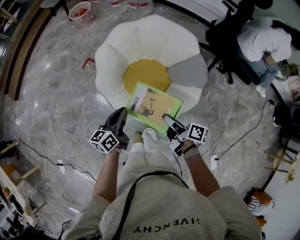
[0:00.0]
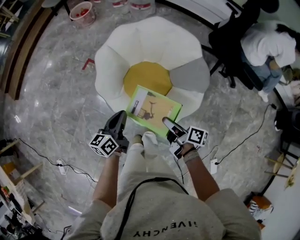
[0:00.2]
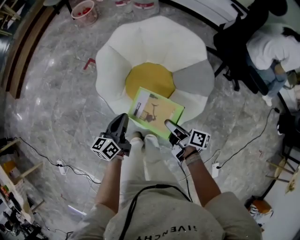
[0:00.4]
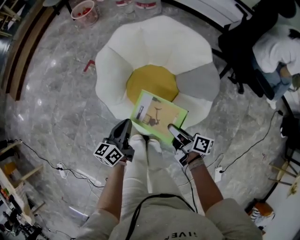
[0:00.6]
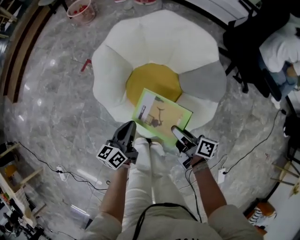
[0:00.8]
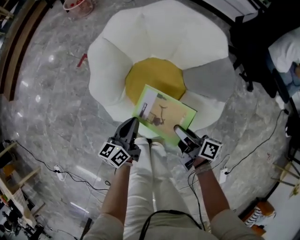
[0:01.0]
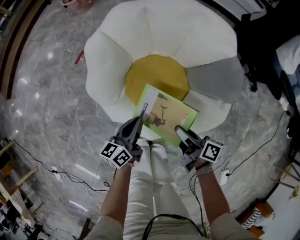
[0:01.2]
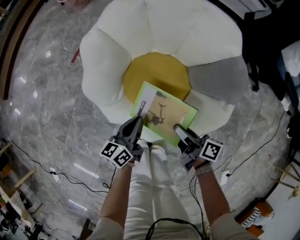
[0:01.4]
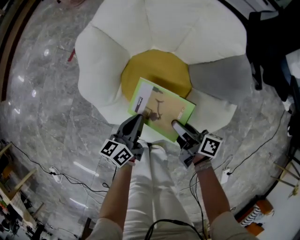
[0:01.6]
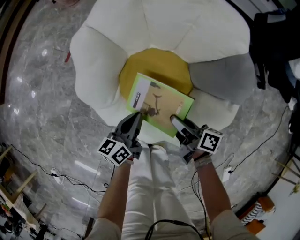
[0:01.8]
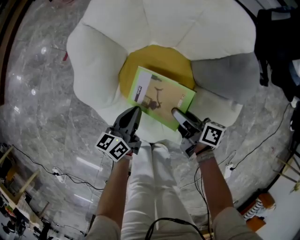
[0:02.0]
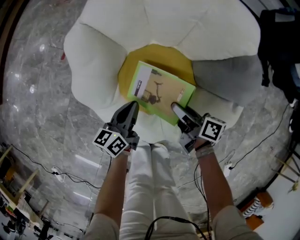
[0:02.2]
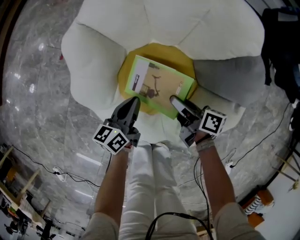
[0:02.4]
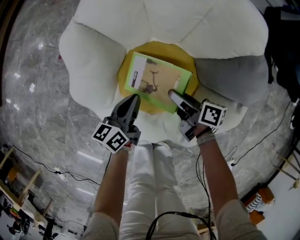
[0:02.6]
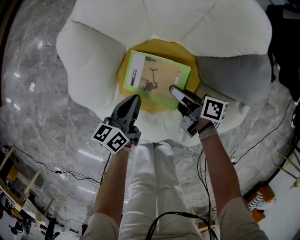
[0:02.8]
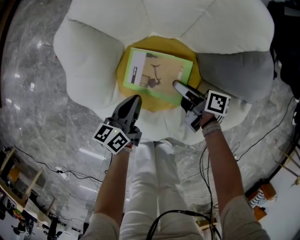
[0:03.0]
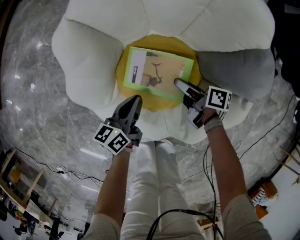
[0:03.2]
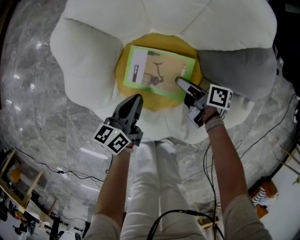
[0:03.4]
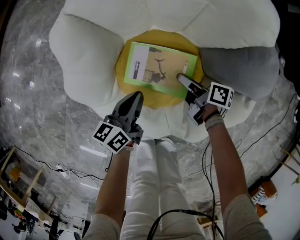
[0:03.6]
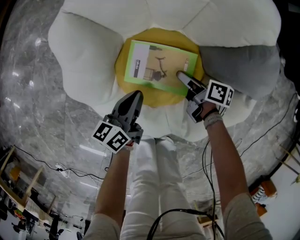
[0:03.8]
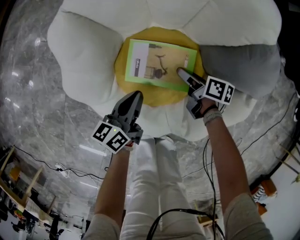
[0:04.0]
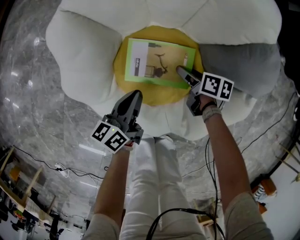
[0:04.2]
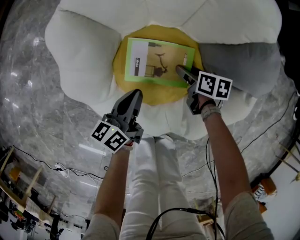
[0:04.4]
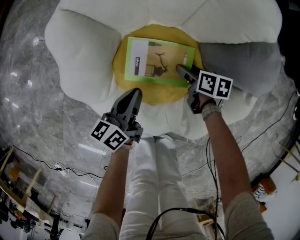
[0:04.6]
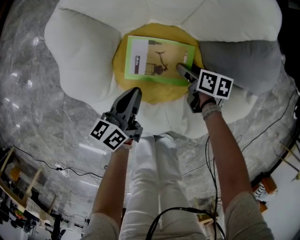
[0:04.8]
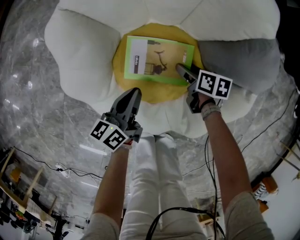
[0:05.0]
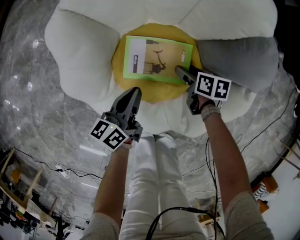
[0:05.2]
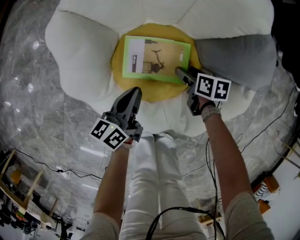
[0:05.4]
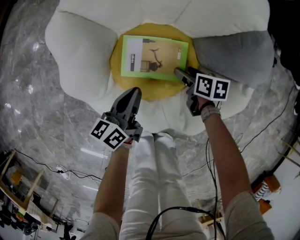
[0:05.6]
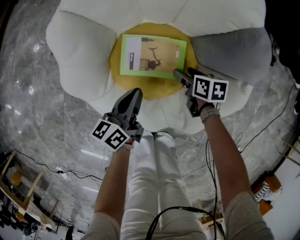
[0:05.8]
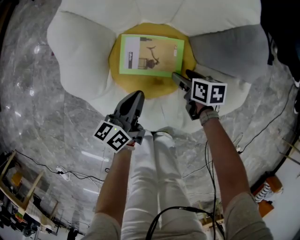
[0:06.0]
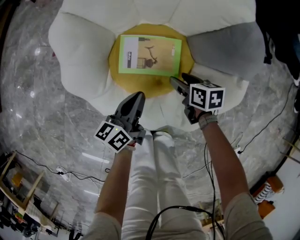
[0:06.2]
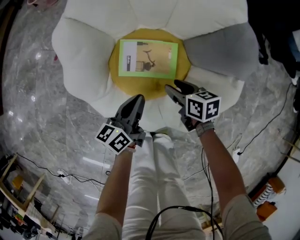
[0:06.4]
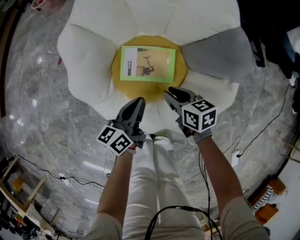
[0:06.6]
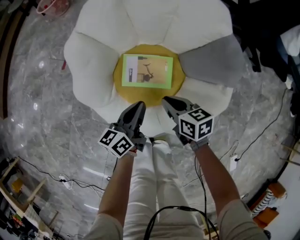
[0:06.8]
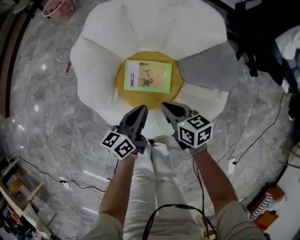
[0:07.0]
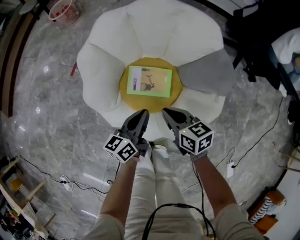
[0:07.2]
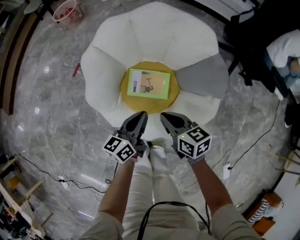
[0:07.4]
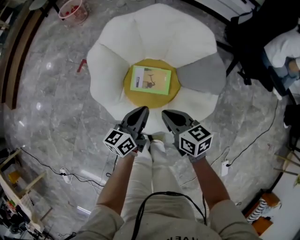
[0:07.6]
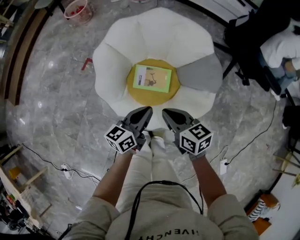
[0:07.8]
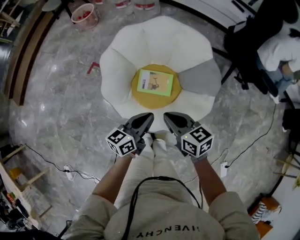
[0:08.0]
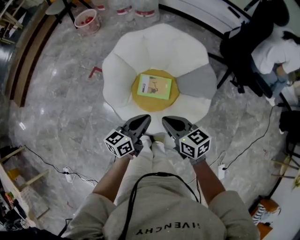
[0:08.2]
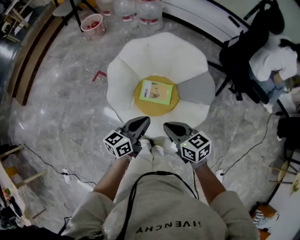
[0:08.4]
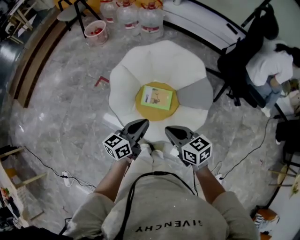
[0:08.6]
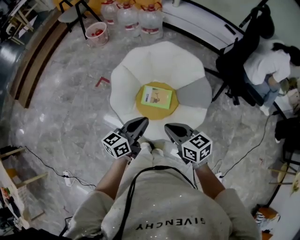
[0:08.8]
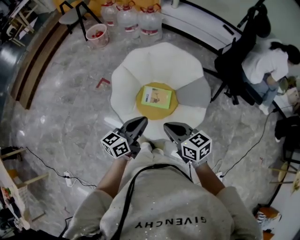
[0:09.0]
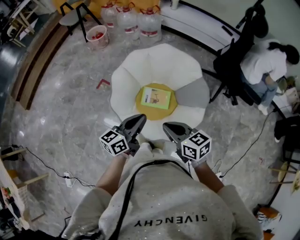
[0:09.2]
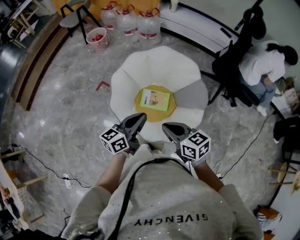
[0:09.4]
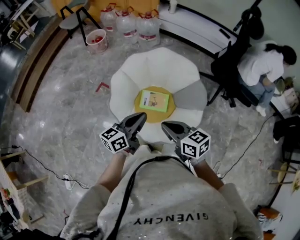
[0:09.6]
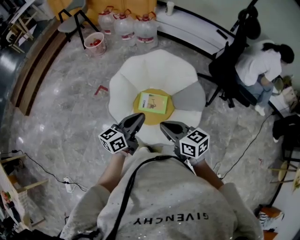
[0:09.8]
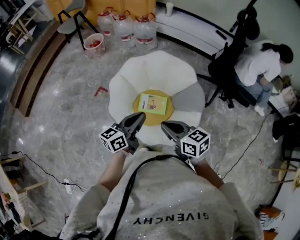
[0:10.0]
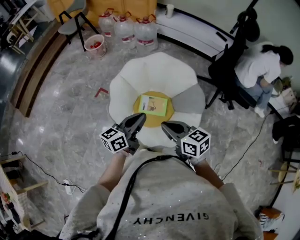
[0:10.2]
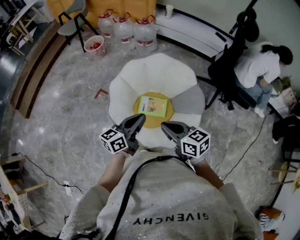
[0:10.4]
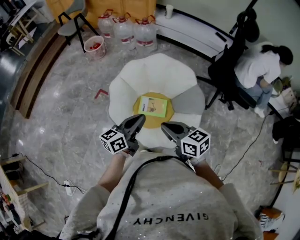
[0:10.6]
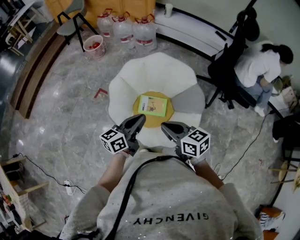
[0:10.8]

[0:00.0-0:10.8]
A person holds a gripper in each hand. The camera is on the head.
0:00.0 to 0:01.6: The left gripper heads downward, covering approximately 25 cm.
0:01.6 to 0:03.0: The left gripper ends up approximately 10 cm from where it was.
0:04.6 to 0:06.2: The left gripper shifts by roughly 5 cm.
0:06.2 to 0:07.8: The left gripper is displaced upward by some 25 cm.
0:07.8 to 0:09.2: The left gripper goes some 20 cm upward.

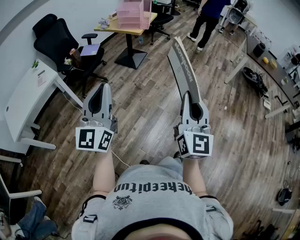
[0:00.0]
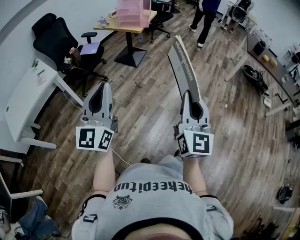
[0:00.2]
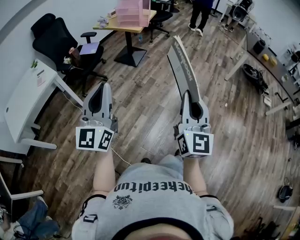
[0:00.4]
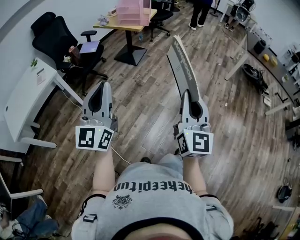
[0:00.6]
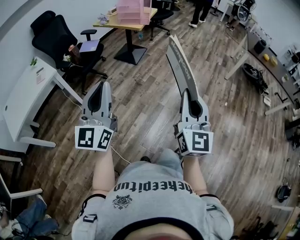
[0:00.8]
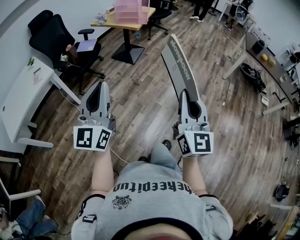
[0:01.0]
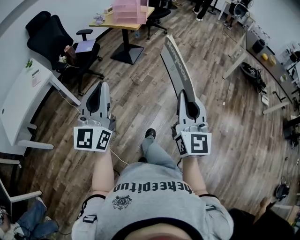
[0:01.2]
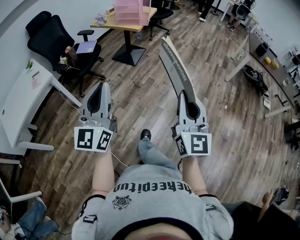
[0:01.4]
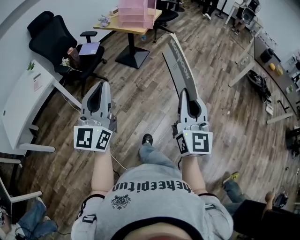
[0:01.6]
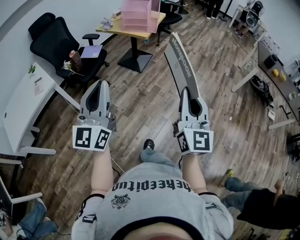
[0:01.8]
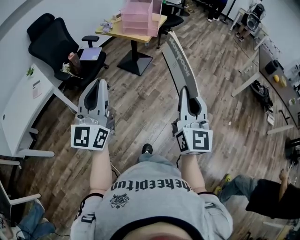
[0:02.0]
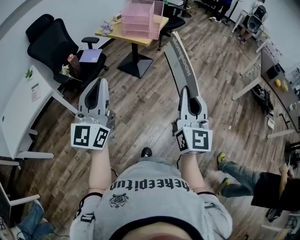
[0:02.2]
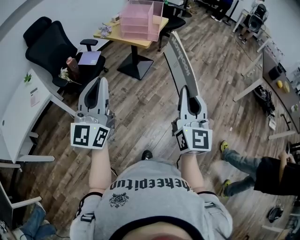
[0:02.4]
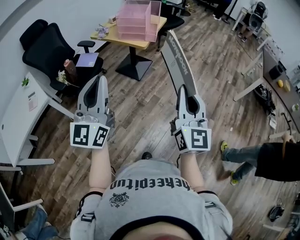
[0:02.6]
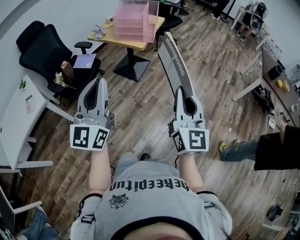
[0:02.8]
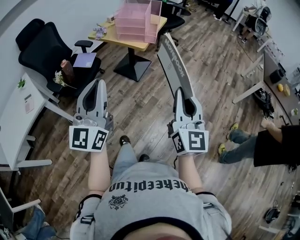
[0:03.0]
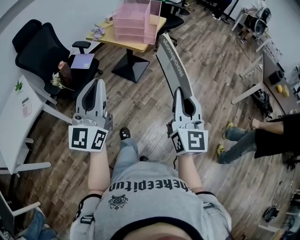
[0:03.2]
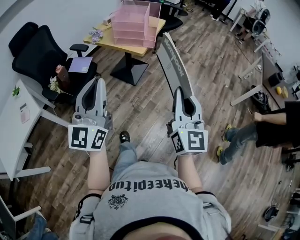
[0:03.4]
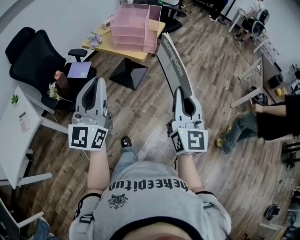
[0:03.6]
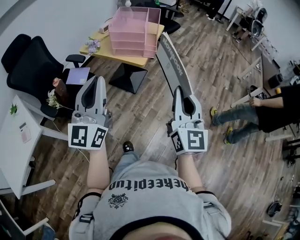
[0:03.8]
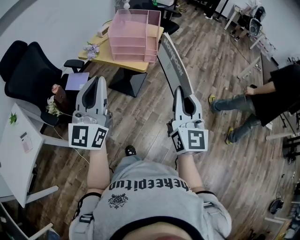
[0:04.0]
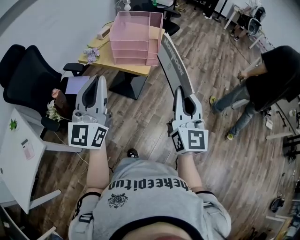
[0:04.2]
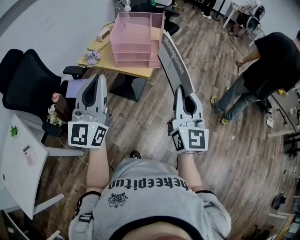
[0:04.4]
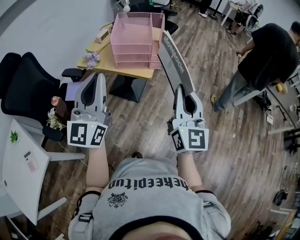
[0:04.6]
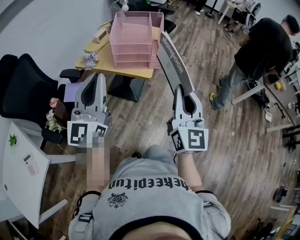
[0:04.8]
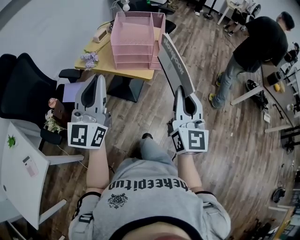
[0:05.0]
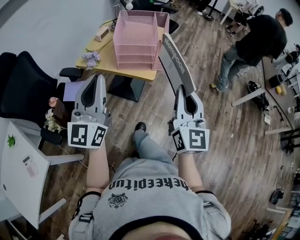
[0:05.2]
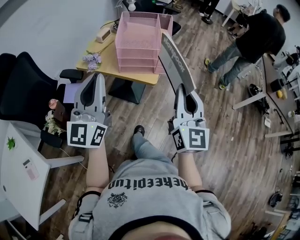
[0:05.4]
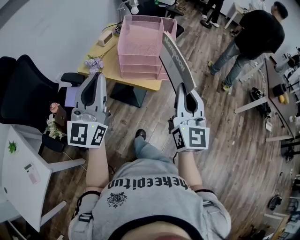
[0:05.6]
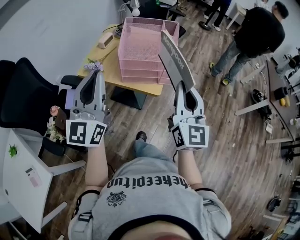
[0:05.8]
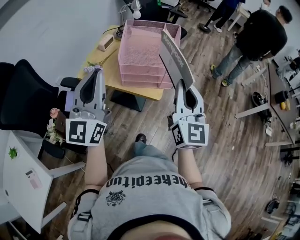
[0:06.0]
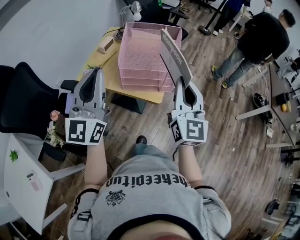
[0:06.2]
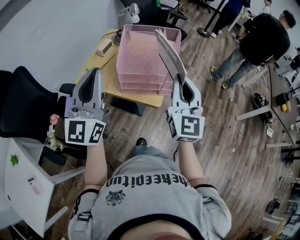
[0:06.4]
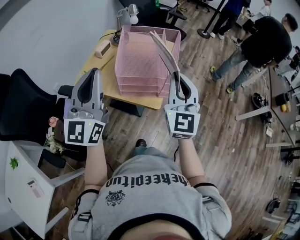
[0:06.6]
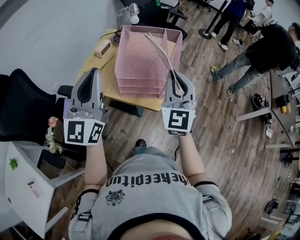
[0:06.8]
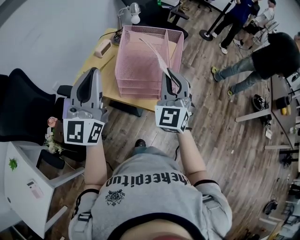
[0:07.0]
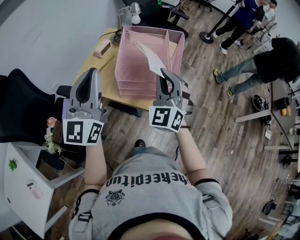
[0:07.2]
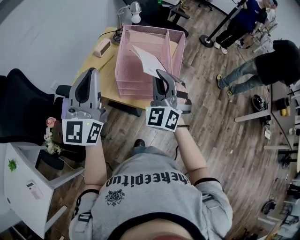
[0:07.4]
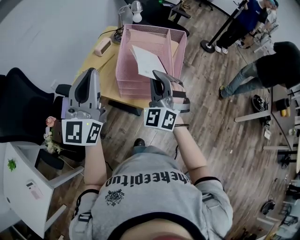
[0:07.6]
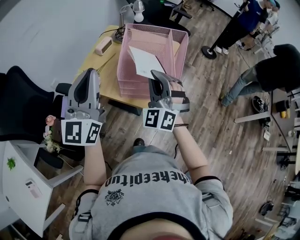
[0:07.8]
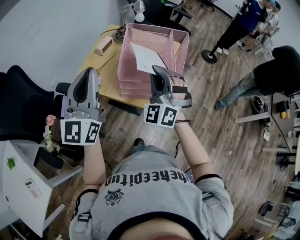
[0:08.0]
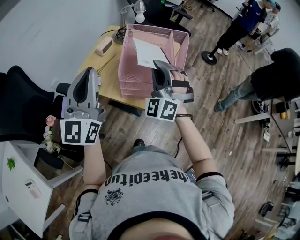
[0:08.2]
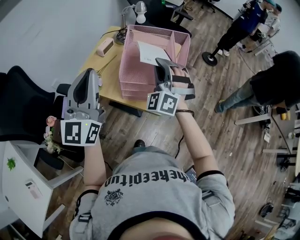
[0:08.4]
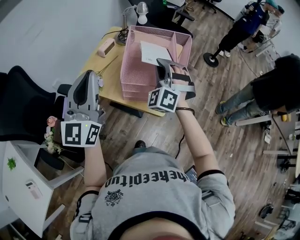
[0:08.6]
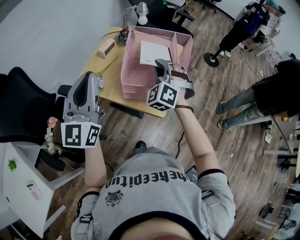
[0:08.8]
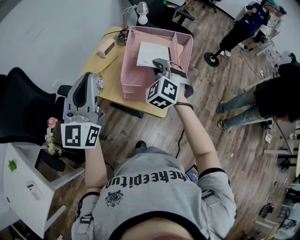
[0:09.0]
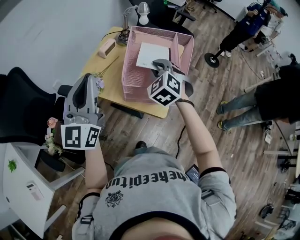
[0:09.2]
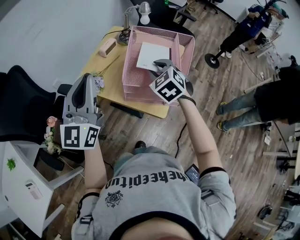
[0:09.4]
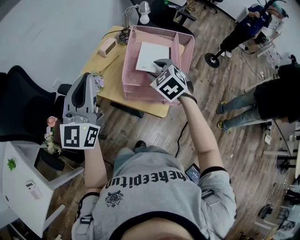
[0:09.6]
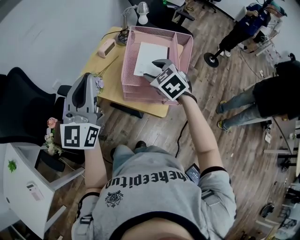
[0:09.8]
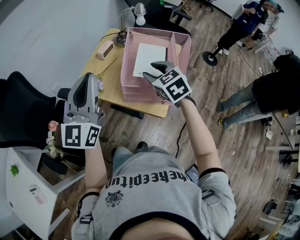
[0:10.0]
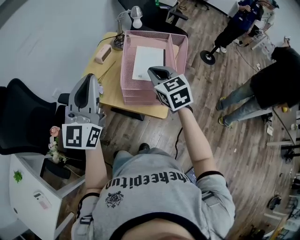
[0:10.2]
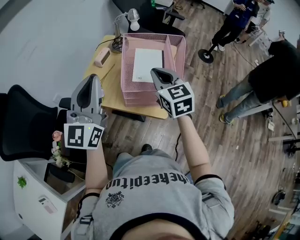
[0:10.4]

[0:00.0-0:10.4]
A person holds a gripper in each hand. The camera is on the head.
0:00.0 to 0:01.4: The two grippers go about 5 cm forward.
0:01.4 to 0:03.0: The two grippers go about 35 cm forward.
0:03.0 to 0:04.4: Both grippers travel together forward and to the left, some 35 cm.
0:04.4 to 0:06.0: Both grippers travel together forward and to the left, roughly 25 cm.
0:06.0 to 0:07.4: The right gripper heads forward, to the left and downward, covering approximately 20 cm, and rotates around the line of its fingers by approximately 50 degrees, counterclockwise from behind; the left gripper moves forward, about 10 cm.
0:07.4 to 0:09.0: The right gripper goes some 10 cm forward and downward, and turns by roughly 20 degrees.
0:09.0 to 0:10.4: The right gripper heads upward, covering roughly 5 cm, rotates around the line of its fingers by roughly 50 degrees, clockwise from behind, and opens and closes again.

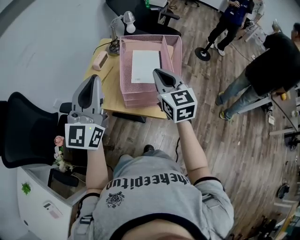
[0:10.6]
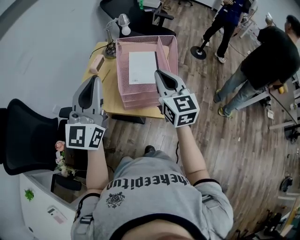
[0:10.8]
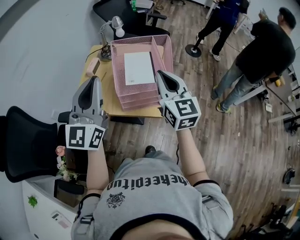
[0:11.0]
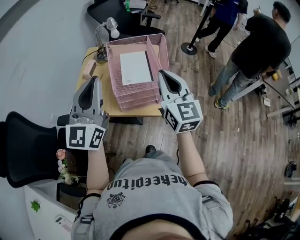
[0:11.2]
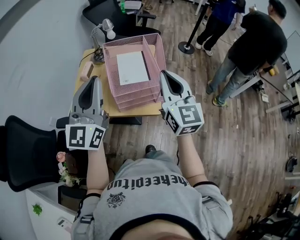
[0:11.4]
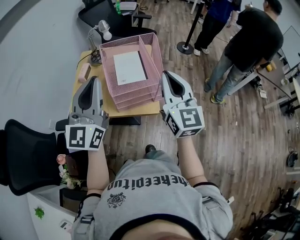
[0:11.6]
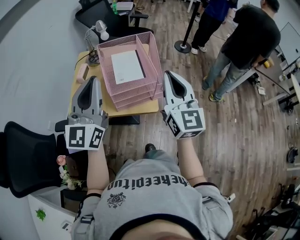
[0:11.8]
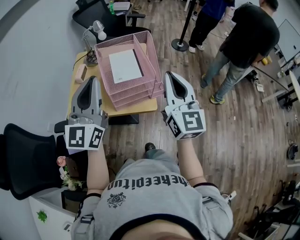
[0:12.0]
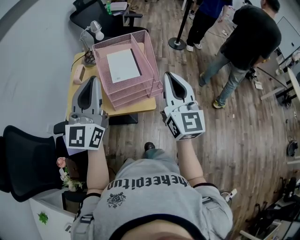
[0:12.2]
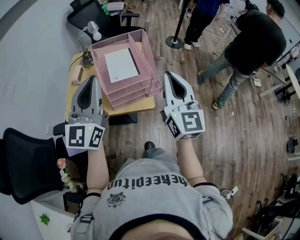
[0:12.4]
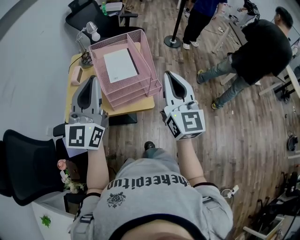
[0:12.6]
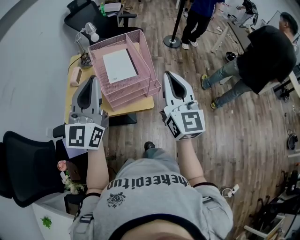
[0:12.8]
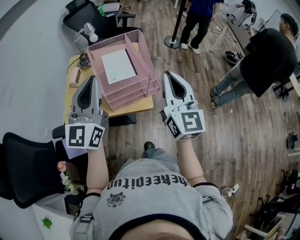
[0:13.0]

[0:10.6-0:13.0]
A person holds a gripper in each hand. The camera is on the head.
0:10.6 to 0:11.8: The right gripper travels backward, to the right and upward by approximately 15 cm, and turns by about 30 degrees.
0:11.8 to 0:13.0: The grippers stay close to where they were, moving slightly.
